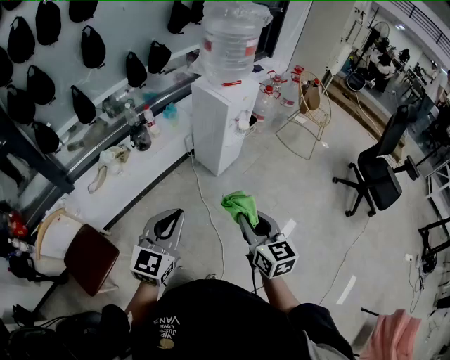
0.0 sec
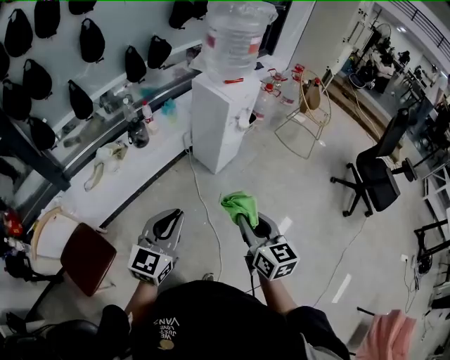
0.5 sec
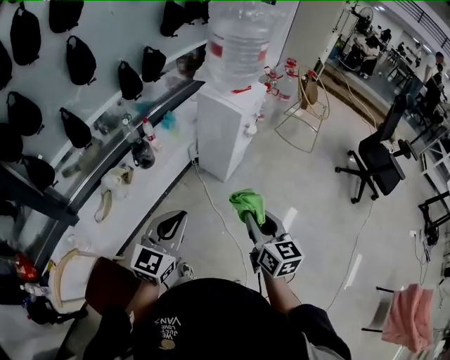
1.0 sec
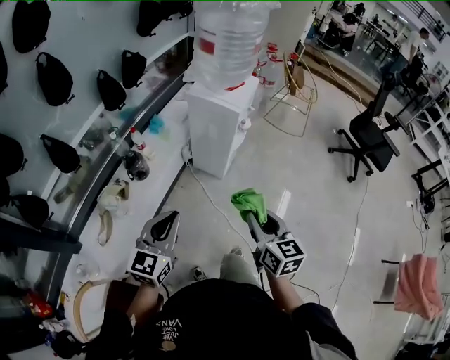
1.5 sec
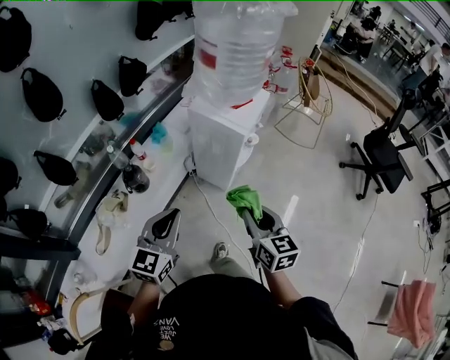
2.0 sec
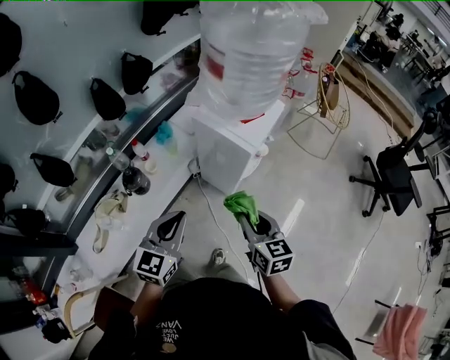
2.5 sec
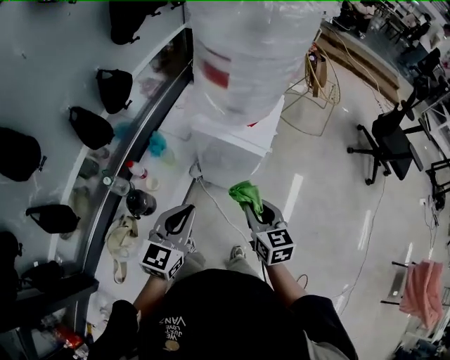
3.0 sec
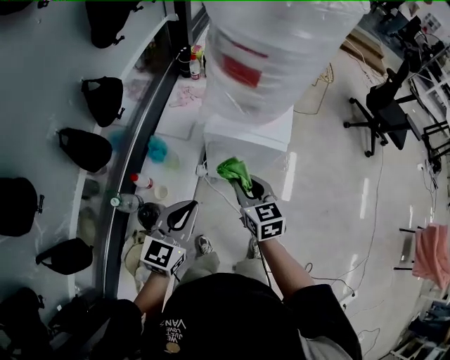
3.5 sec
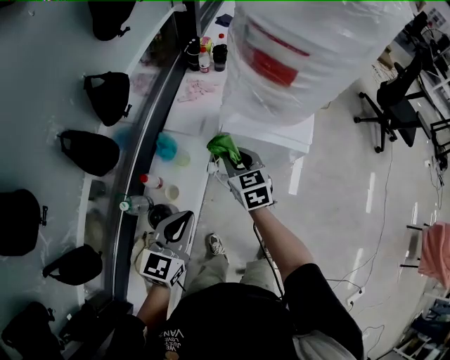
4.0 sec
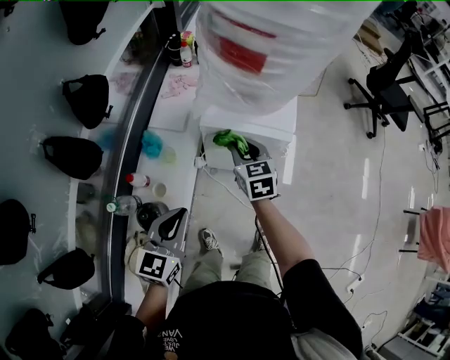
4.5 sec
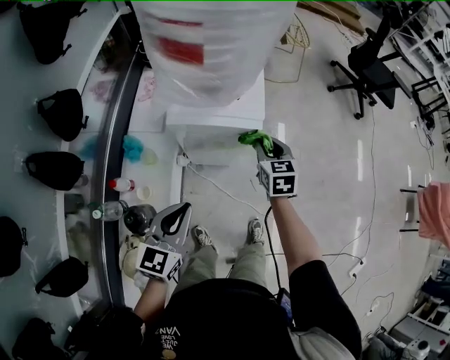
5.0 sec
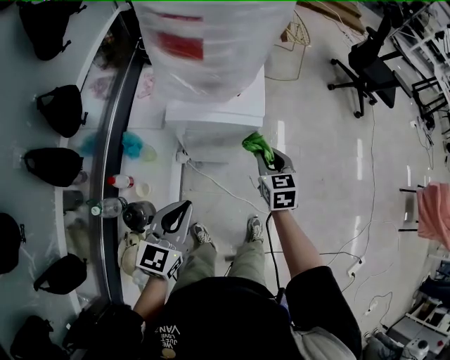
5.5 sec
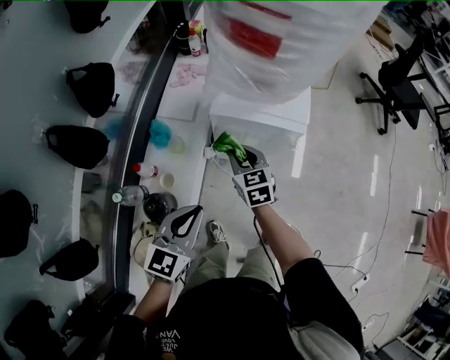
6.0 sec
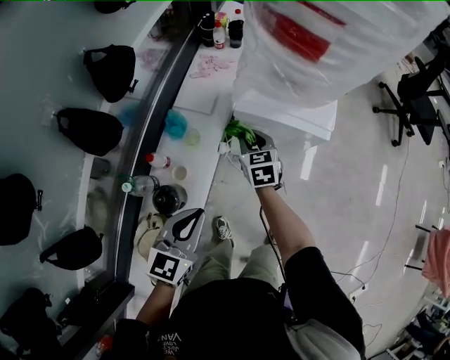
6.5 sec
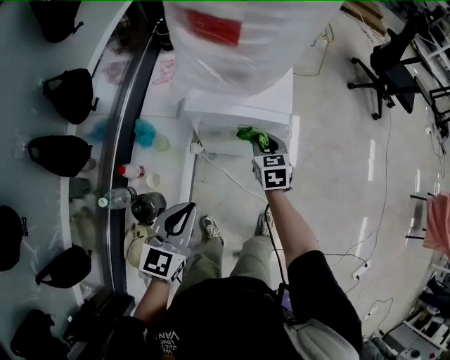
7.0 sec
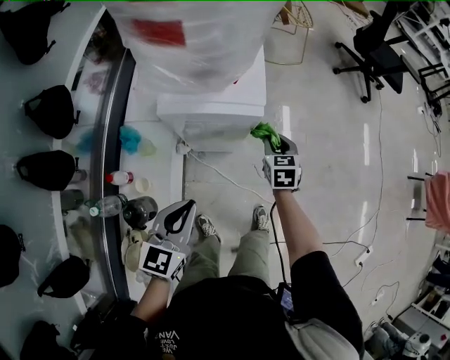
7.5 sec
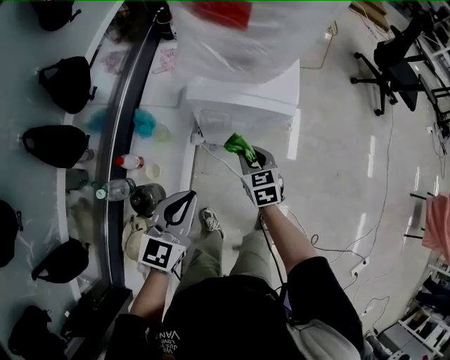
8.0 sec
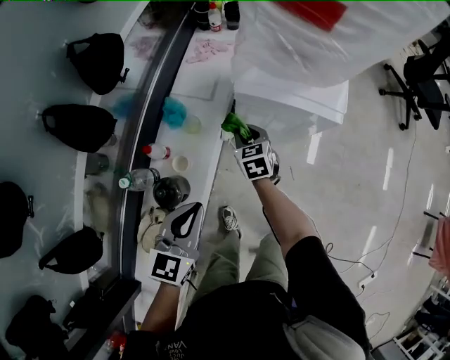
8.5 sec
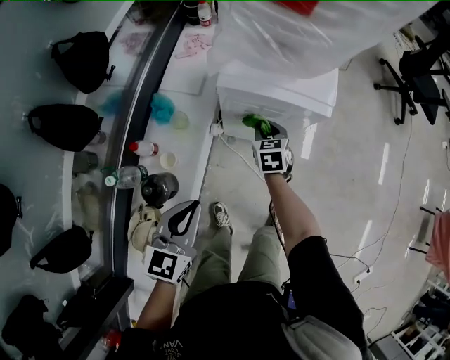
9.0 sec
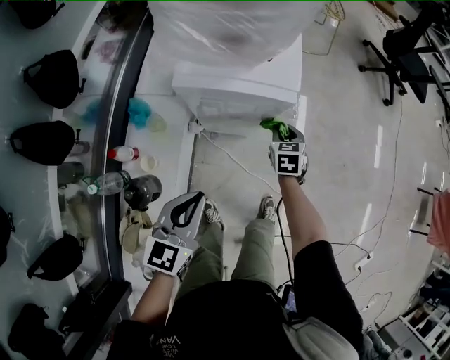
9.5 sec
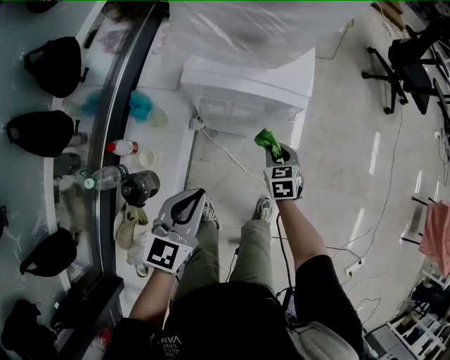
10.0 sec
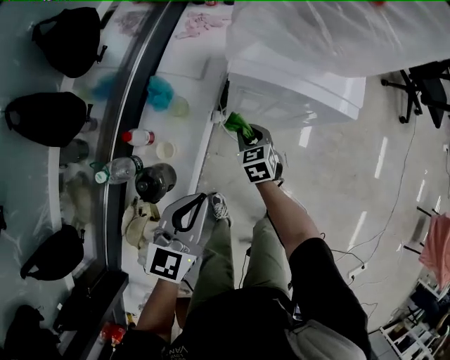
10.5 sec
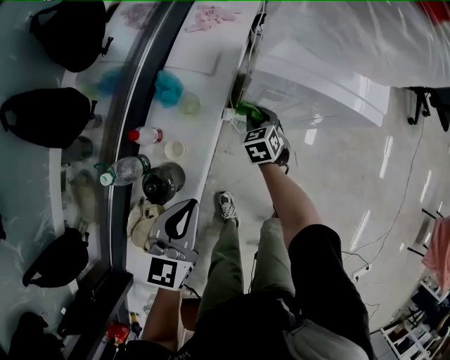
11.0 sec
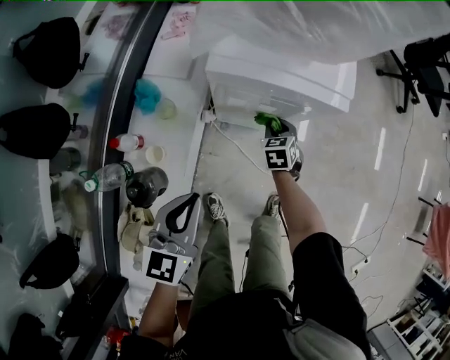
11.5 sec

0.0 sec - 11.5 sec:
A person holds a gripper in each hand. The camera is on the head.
0.0 sec - 2.0 sec: Both grippers move forward and to the left, roughly 30 cm.
2.0 sec - 4.0 sec: The left gripper moves forward, to the left and downward, approximately 30 cm, and rotates roughly 20 degrees. The right gripper travels forward and to the left by about 40 cm.
4.0 sec - 6.0 sec: The left gripper shifts about 5 cm to the right; the right gripper goes some 5 cm downward, and goes to the right and returns, some 25 cm each way.
6.0 sec - 7.5 sec: The right gripper heads to the right, covering some 25 cm, and rotates some 30 degrees. The left gripper moves to the right, about 10 cm.
7.5 sec - 9.5 sec: The left gripper goes to the left and returns, approximately 10 cm each way. The right gripper heads downward, covering approximately 10 cm, and moves roughly 30 cm to the left and comes back.
9.5 sec - 11.5 sec: The left gripper travels to the left by roughly 5 cm. The right gripper moves to the left and downward, about 15 cm.

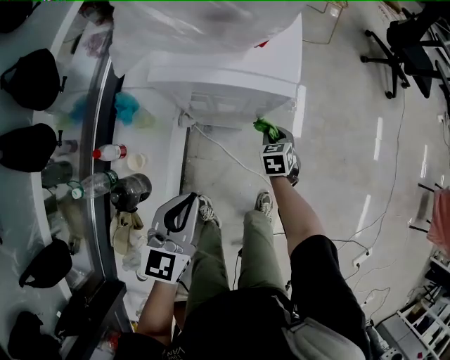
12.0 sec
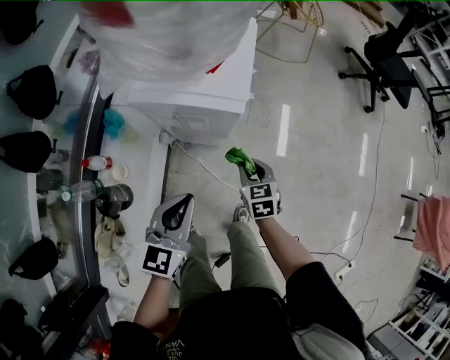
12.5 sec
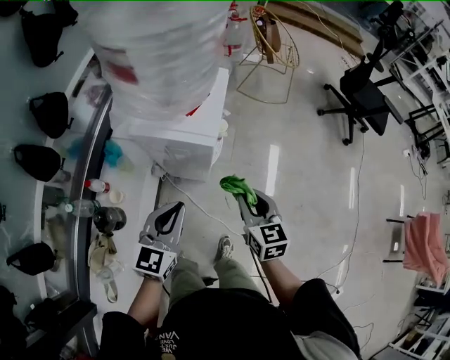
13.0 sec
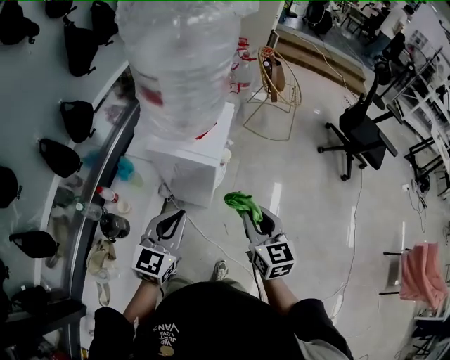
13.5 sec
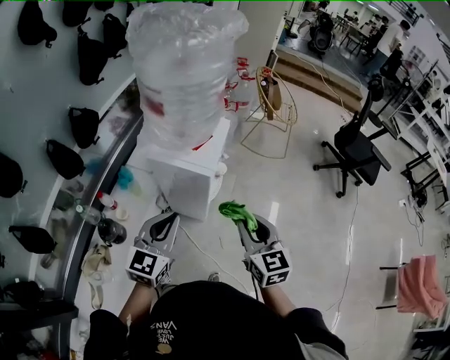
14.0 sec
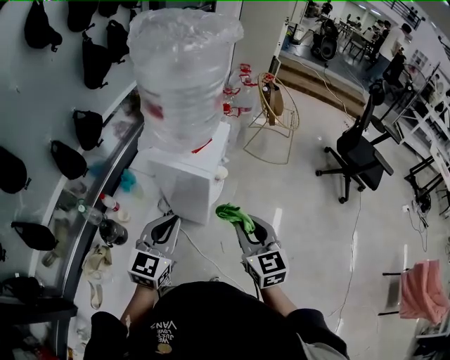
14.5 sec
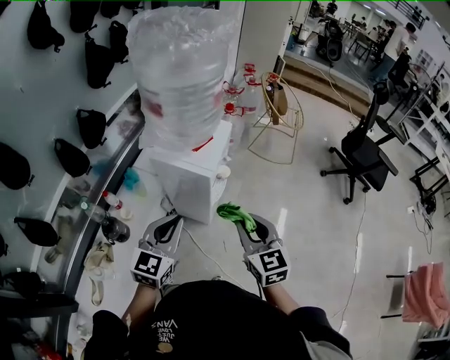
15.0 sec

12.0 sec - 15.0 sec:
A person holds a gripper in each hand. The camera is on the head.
12.0 sec - 13.5 sec: The left gripper goes about 20 cm upward and to the right; the right gripper moves upward, about 40 cm, and points its fingers approximately 40 degrees further upward.
13.5 sec - 15.0 sec: The grippers move only a little.

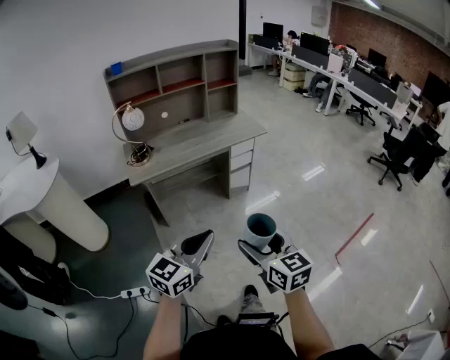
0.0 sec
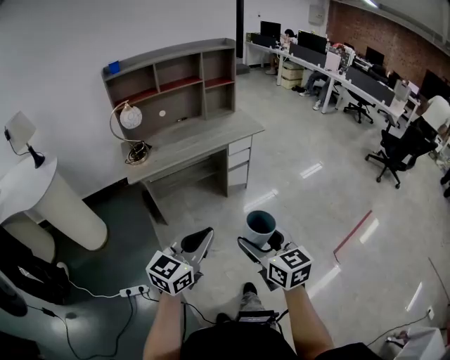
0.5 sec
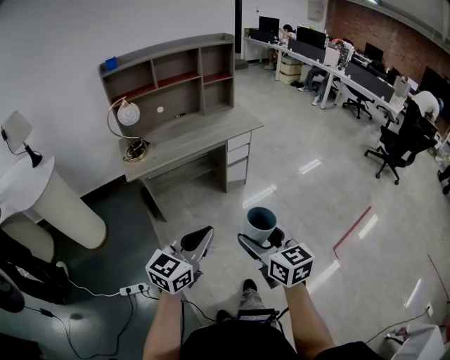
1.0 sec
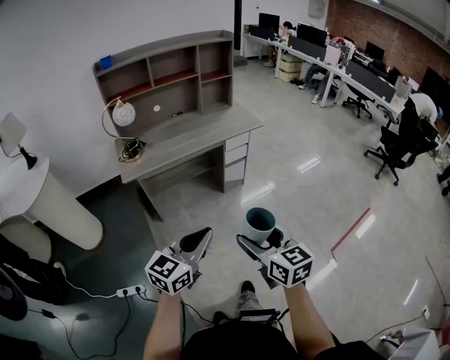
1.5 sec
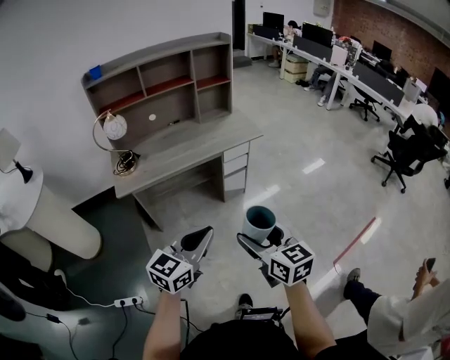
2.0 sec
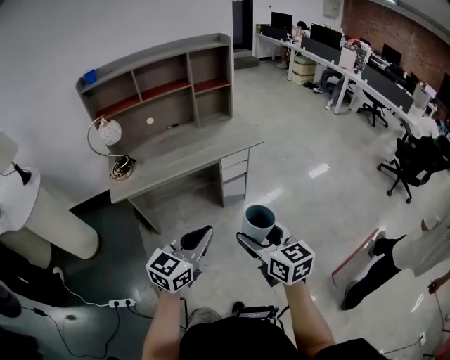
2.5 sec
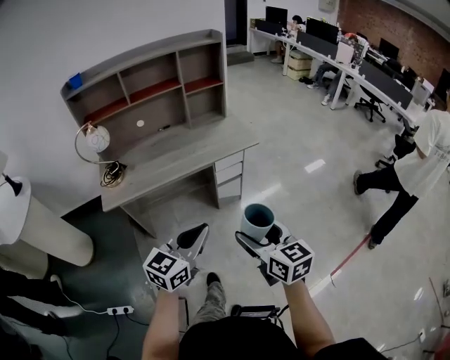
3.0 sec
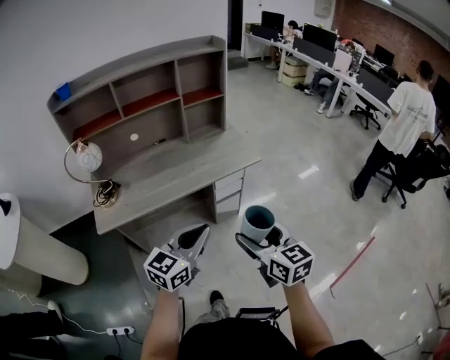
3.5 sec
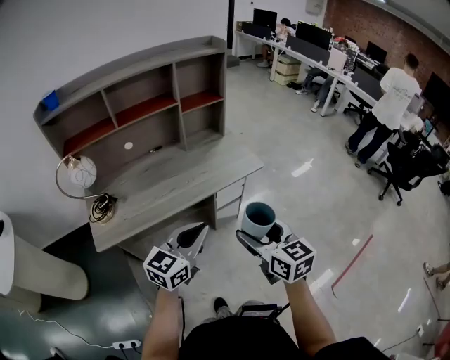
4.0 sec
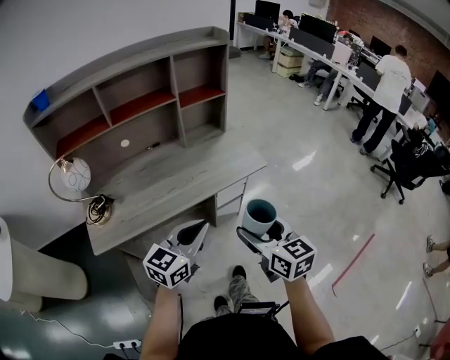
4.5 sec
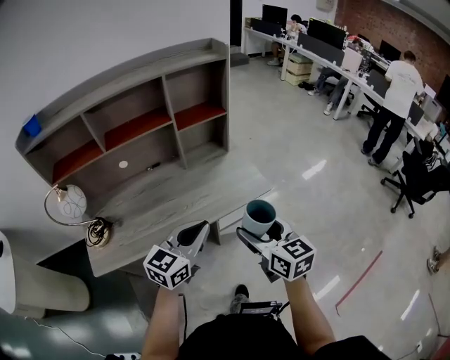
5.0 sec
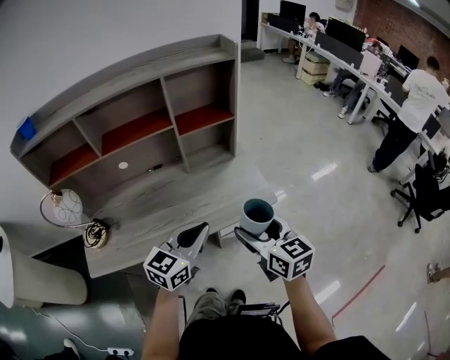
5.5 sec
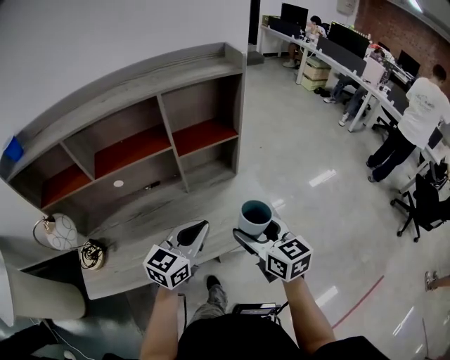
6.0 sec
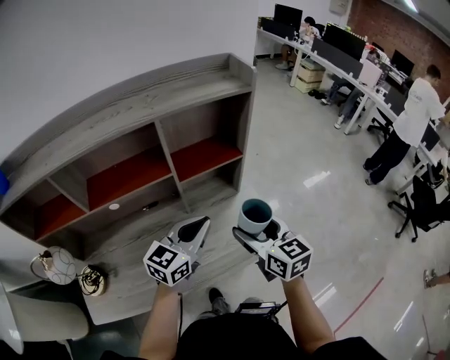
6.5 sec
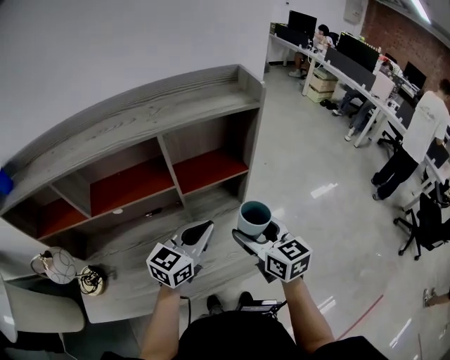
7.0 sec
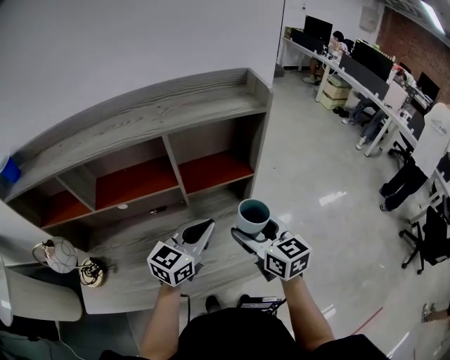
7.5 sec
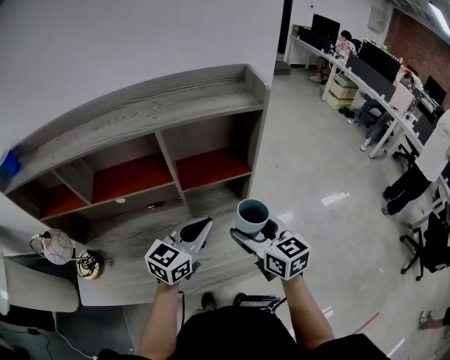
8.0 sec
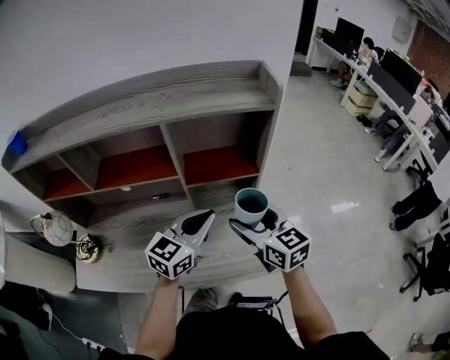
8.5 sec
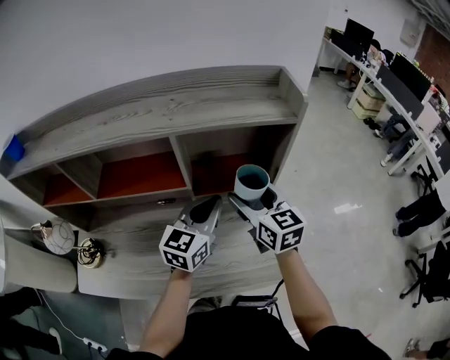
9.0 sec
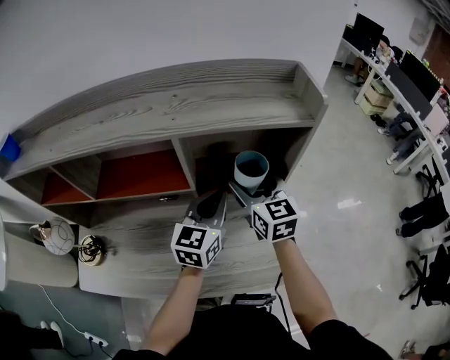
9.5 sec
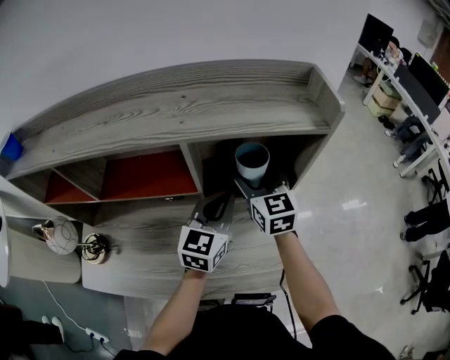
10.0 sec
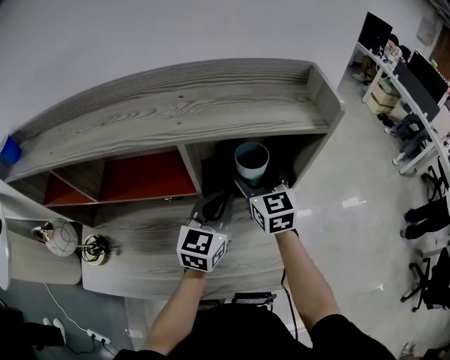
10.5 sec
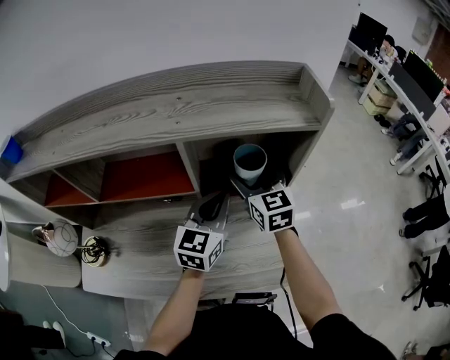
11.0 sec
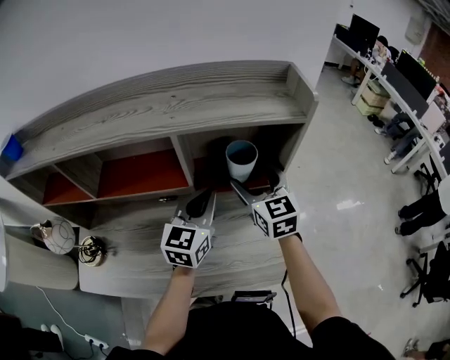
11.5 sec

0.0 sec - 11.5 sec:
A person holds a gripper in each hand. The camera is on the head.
0.0 sec - 2.0 sec: Both grippers travel together forward, roughly 15 cm.
2.0 sec - 4.0 sec: The grippers both shift forward by roughly 30 cm.
4.0 sec - 6.0 sec: Both grippers move forward, roughly 35 cm.
6.0 sec - 7.5 sec: The grippers both shift forward by about 15 cm.
7.5 sec - 9.5 sec: Both grippers travel together forward, roughly 15 cm. The left gripper rotates roughly 30 degrees.
9.5 sec - 11.5 sec: The grippers move only a little.

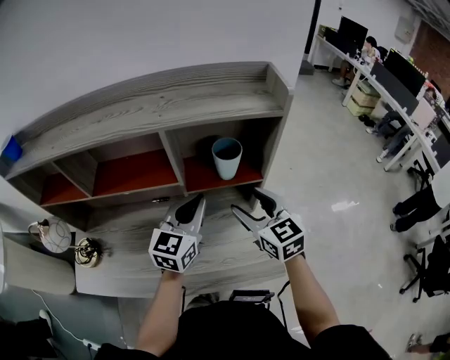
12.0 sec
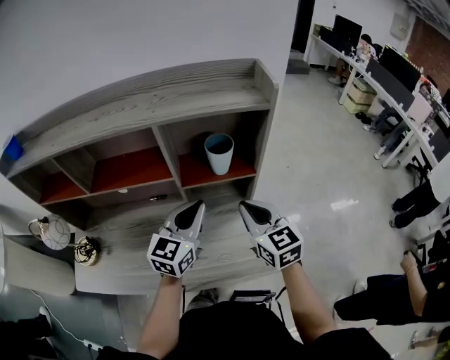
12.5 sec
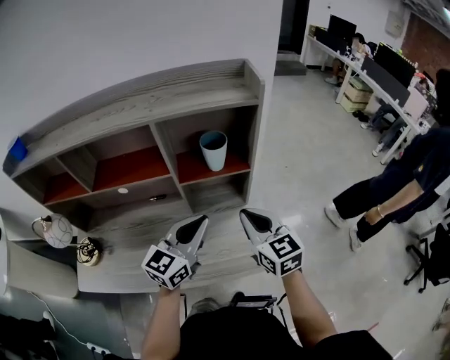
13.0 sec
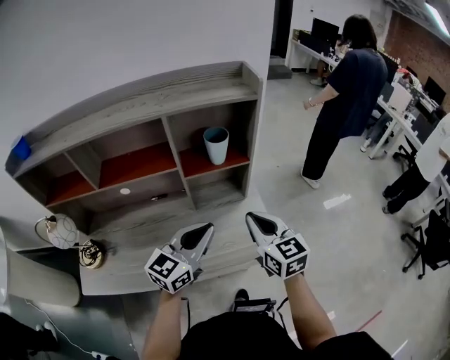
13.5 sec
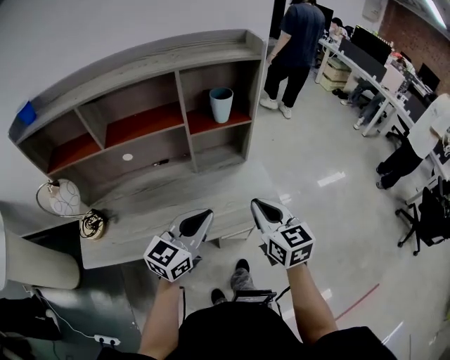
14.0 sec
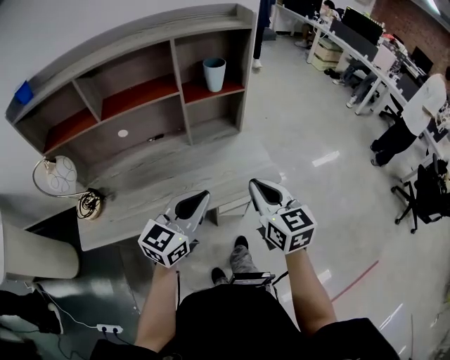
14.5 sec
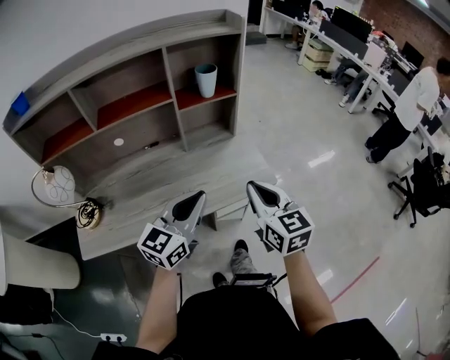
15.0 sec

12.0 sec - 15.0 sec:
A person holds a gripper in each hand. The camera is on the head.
12.0 sec - 13.5 sec: The grippers both shift backward by roughly 15 cm. The left gripper rotates approximately 20 degrees; the right gripper closes its fingers.
13.5 sec - 15.0 sec: The two grippers go approximately 15 cm backward.
